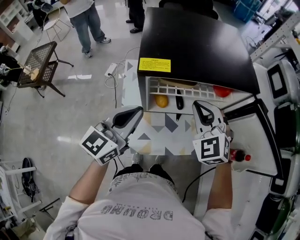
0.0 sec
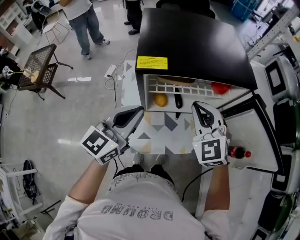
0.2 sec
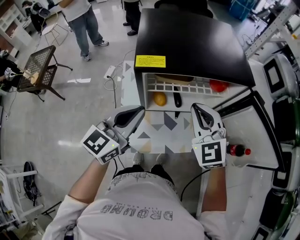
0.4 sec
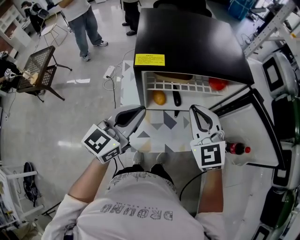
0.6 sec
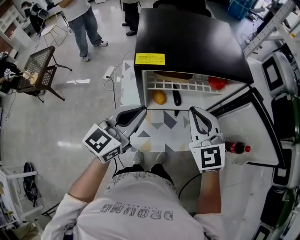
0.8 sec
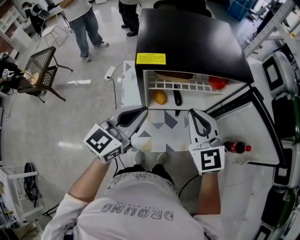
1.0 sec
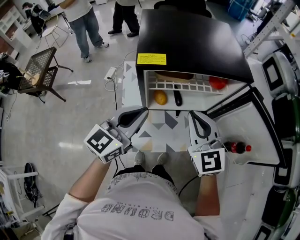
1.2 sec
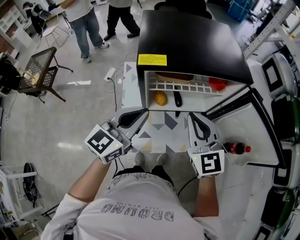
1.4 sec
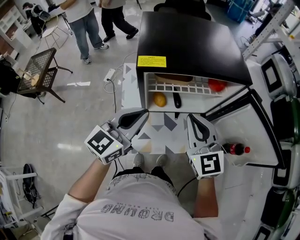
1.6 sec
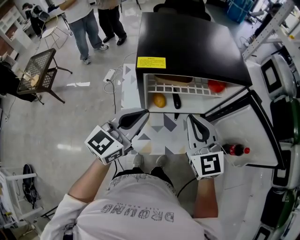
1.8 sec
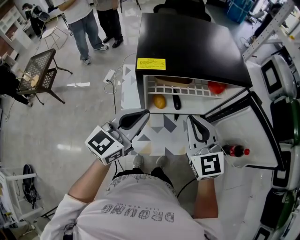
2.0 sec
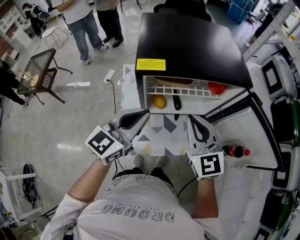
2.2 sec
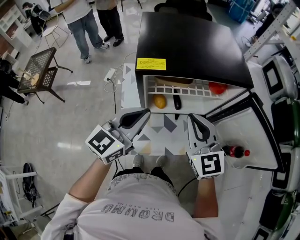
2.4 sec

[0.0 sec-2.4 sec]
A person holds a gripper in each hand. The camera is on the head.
0.0 sec to 1.2 sec: The right gripper heads backward, covering roughly 5 cm, and turns by roughly 30 degrees.
1.2 sec to 2.4 sec: The grippers stay close to where they were, moving slightly.

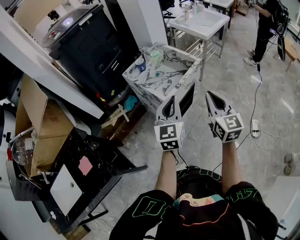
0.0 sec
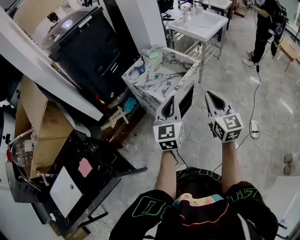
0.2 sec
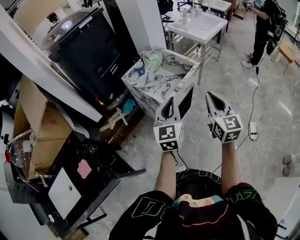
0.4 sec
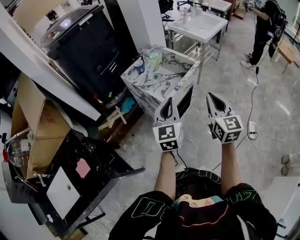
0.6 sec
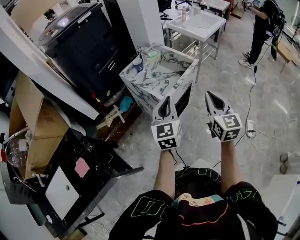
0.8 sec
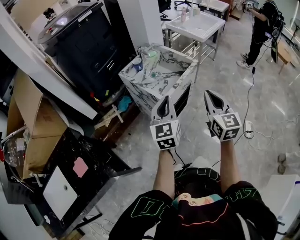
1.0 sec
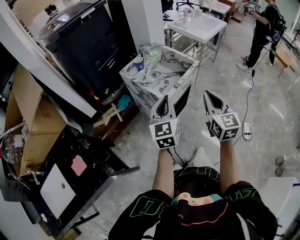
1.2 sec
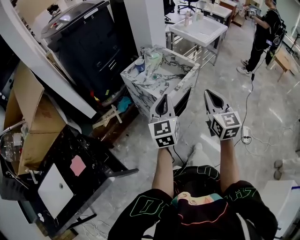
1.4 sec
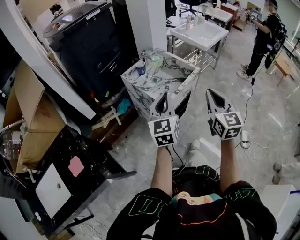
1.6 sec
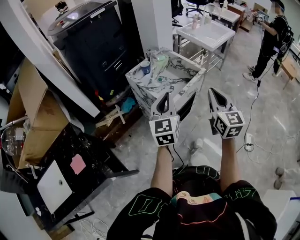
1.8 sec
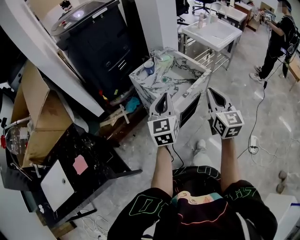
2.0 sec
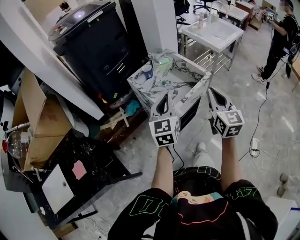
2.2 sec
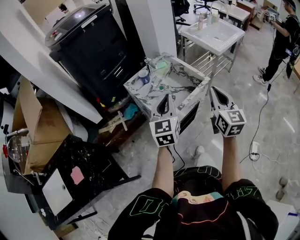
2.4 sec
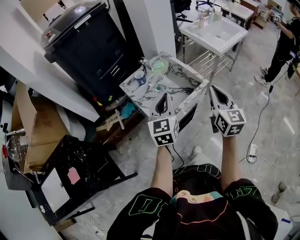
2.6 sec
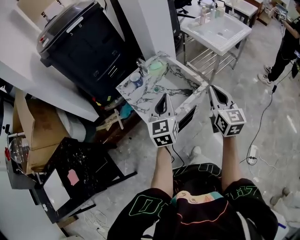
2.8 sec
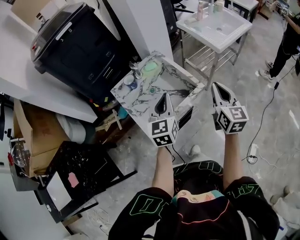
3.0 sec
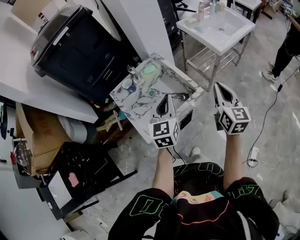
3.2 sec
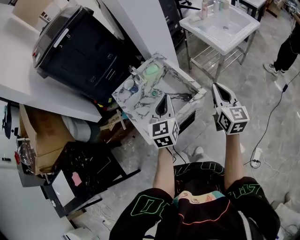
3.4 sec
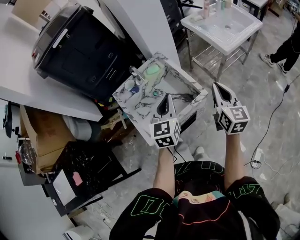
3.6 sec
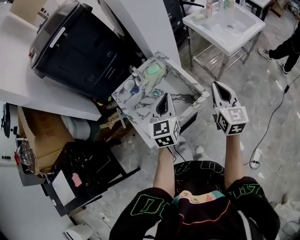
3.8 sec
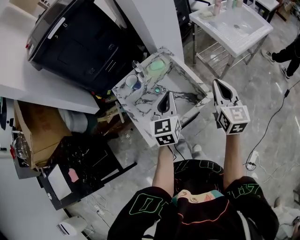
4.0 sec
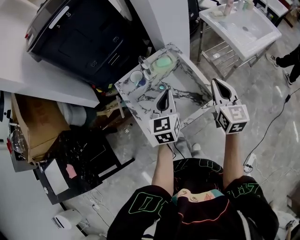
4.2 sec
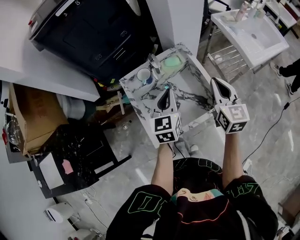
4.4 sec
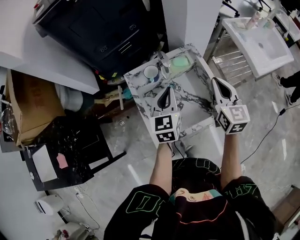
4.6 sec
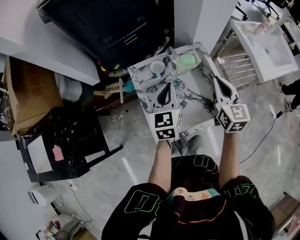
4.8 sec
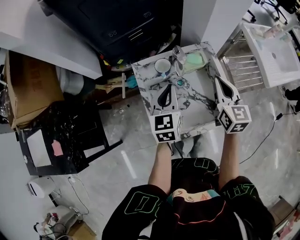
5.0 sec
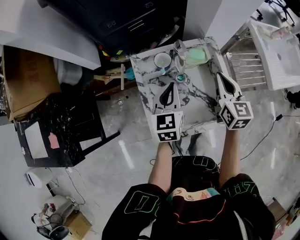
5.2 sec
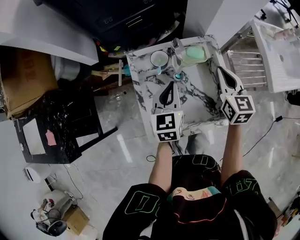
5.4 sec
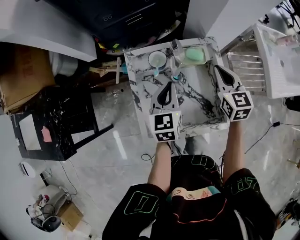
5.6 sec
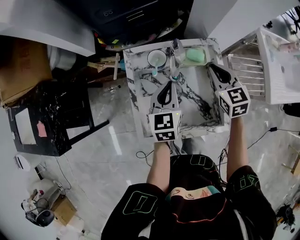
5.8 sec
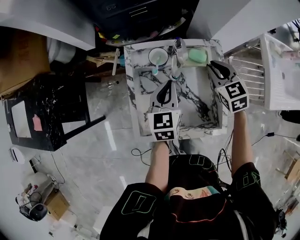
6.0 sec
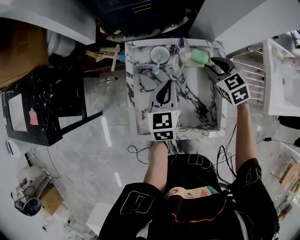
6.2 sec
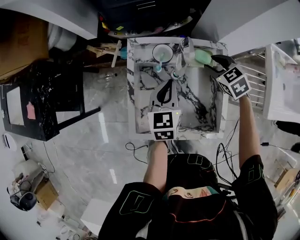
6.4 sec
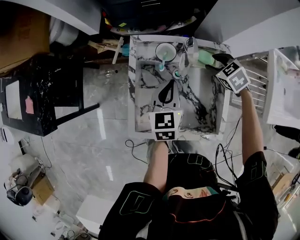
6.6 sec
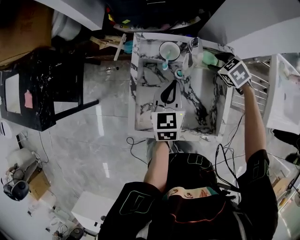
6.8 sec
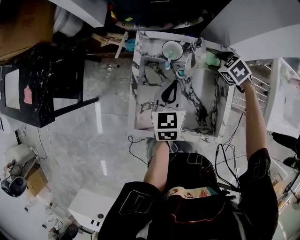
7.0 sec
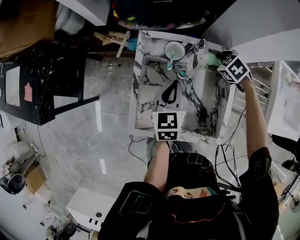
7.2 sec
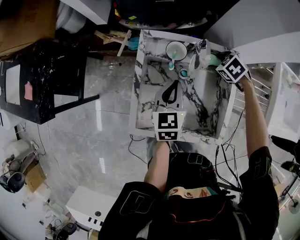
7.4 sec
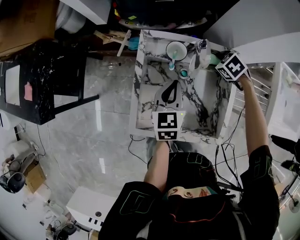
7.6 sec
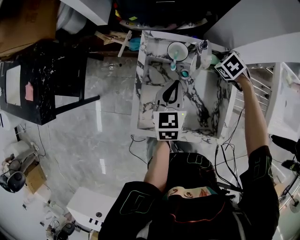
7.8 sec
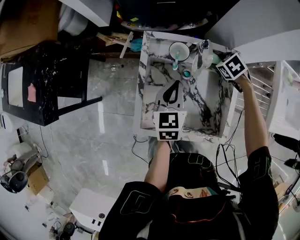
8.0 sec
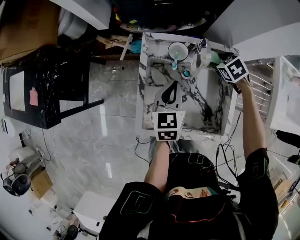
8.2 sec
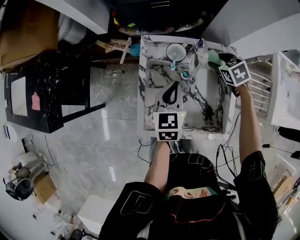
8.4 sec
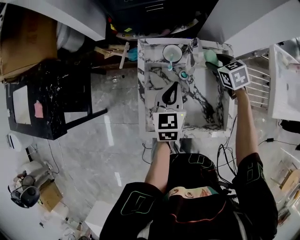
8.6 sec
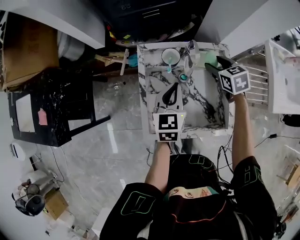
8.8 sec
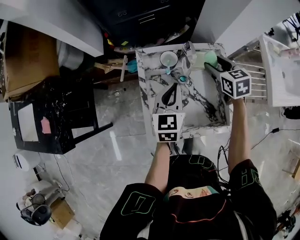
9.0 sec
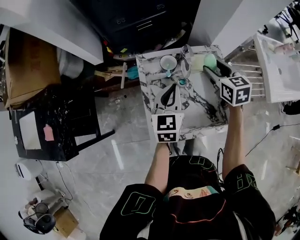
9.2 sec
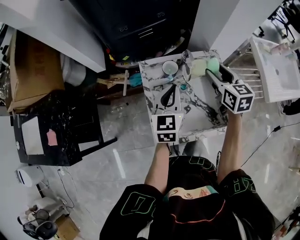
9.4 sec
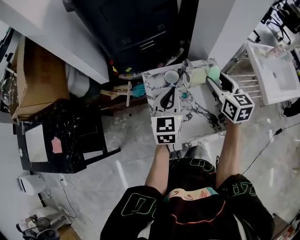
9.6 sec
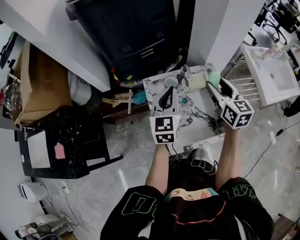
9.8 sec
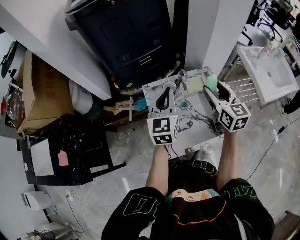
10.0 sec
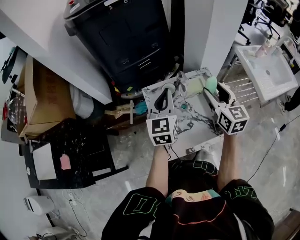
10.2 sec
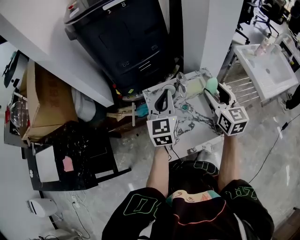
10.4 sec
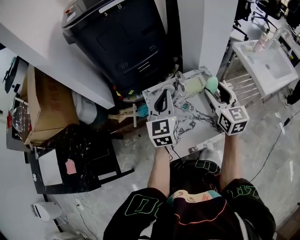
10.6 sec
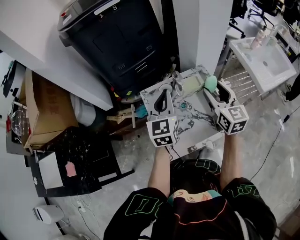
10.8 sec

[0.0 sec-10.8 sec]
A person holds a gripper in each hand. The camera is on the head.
0.0 sec to 1.6 sec: The left gripper heads to the left, covering roughly 5 cm.
1.6 sec to 3.0 sec: The two grippers go about 30 cm forward and to the right.
3.0 sec to 4.6 sec: The right gripper is displaced forward and to the left by about 25 cm, and swivels some 20 degrees. Meanwhile the left gripper travels forward, to the left and downward by approximately 20 cm.
4.6 sec to 6.2 sec: The right gripper moves some 25 cm, points its fingers approximately 30 degrees further downward, and opens up, while the left gripper goes some 10 cm downward, and turns by approximately 20 degrees.
6.2 sec to 7.8 sec: The right gripper shifts about 10 cm downward, tips its fingers downward by about 30 degrees, and opens its fingers.
7.8 sec to 9.2 sec: The left gripper heads upward, covering some 10 cm. The right gripper heads upward, covering approximately 20 cm, and tips its fingers upward by approximately 40 degrees.
9.2 sec to 10.8 sec: The right gripper is displaced upward and backward by some 15 cm, and rotates about 30 degrees; the left gripper moves upward, approximately 10 cm.

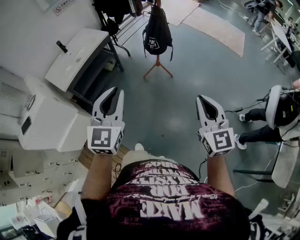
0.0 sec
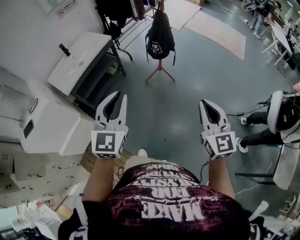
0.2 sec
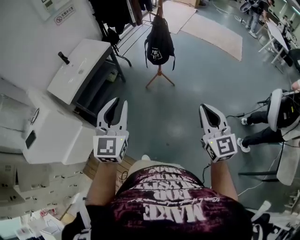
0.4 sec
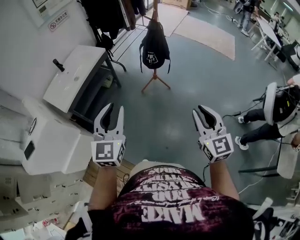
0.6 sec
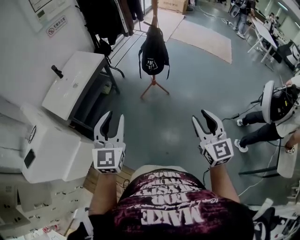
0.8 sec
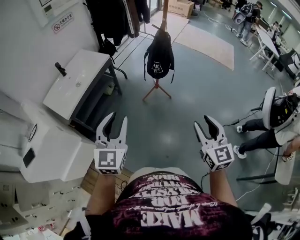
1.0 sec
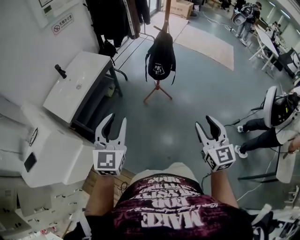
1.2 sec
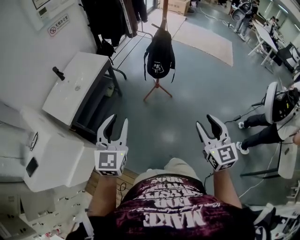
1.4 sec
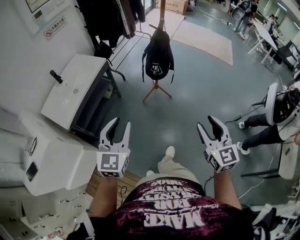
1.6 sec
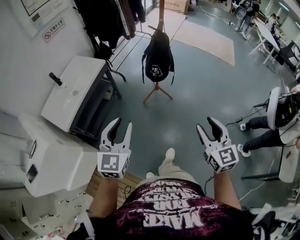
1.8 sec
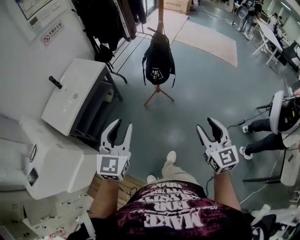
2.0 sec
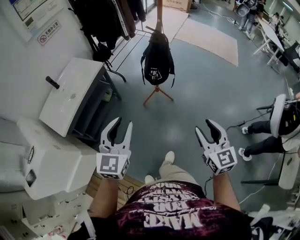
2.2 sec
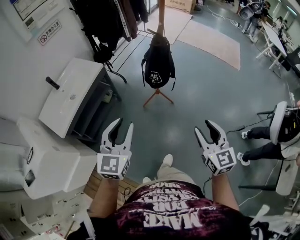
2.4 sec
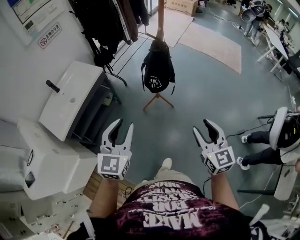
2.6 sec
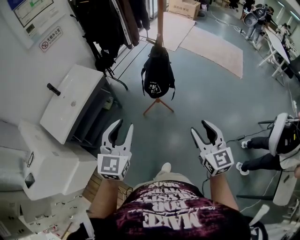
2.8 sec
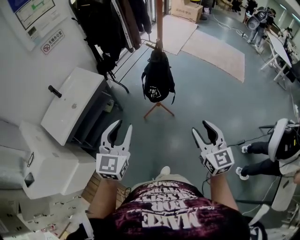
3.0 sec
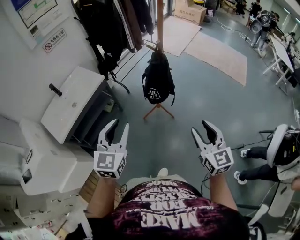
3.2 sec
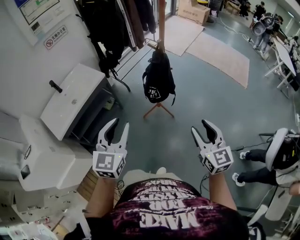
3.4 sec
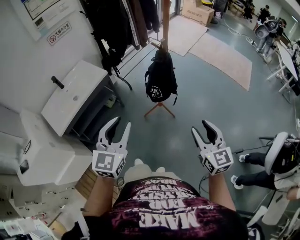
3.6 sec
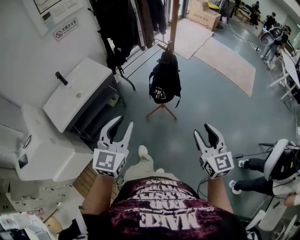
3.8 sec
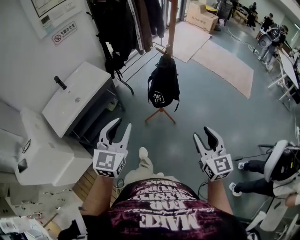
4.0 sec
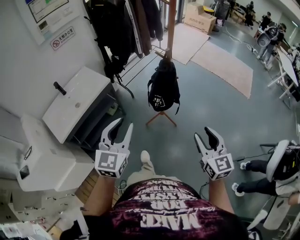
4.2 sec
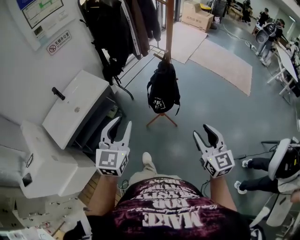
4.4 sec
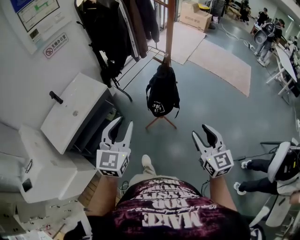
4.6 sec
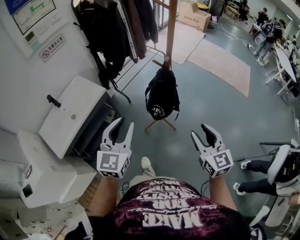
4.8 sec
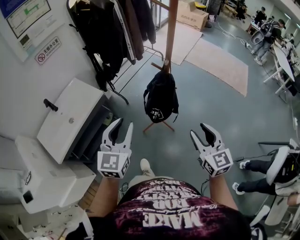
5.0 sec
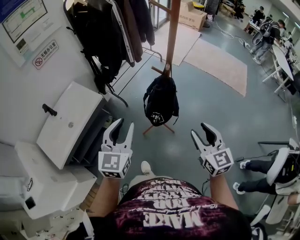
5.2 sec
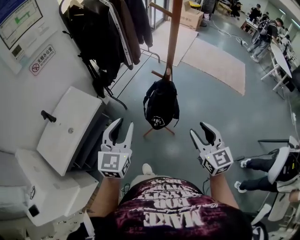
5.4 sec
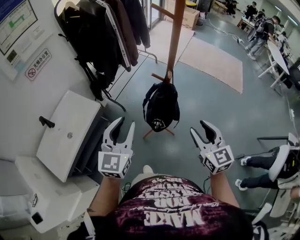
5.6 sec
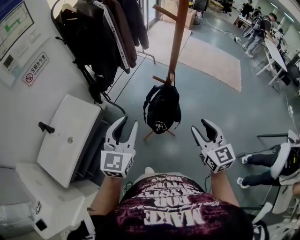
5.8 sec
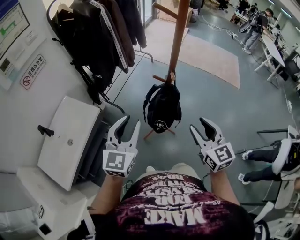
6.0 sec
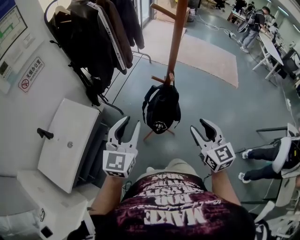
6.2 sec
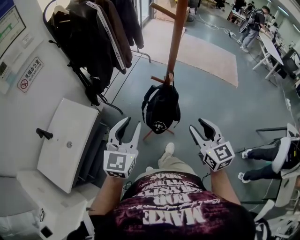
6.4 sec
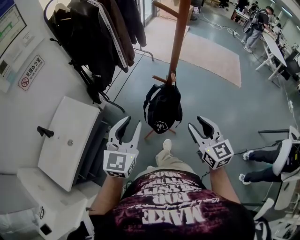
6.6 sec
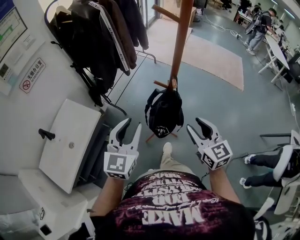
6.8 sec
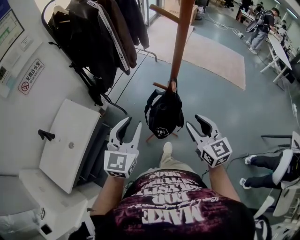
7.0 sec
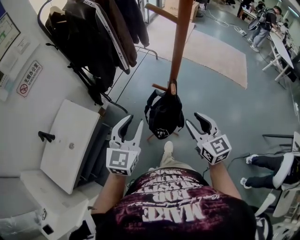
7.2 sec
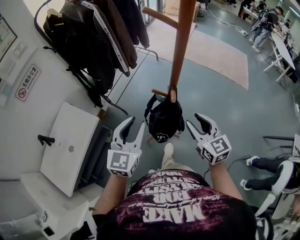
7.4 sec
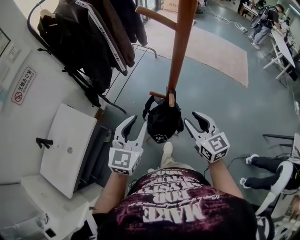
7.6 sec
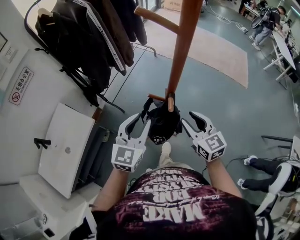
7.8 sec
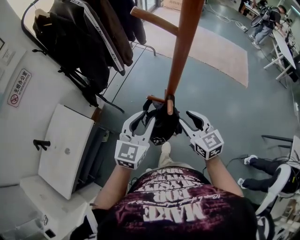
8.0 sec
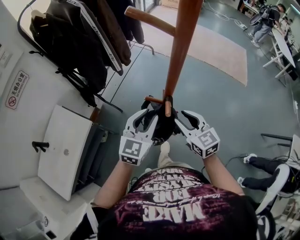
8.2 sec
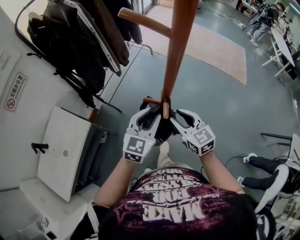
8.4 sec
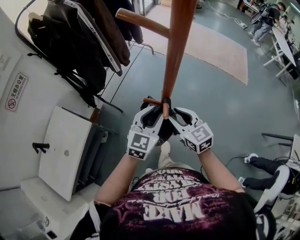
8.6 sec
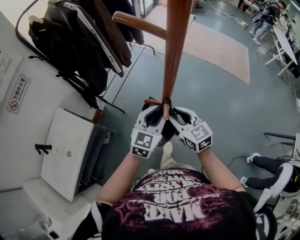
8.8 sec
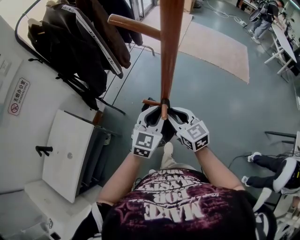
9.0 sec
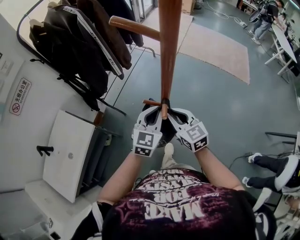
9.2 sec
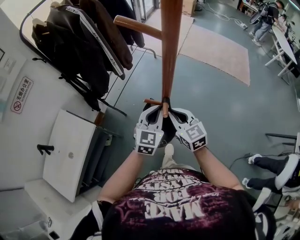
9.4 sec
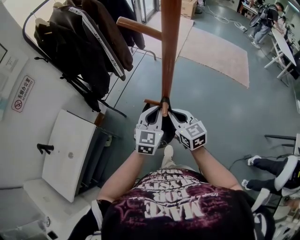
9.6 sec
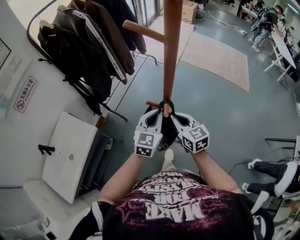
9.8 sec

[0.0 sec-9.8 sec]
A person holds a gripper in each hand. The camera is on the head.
0.0 sec to 1.4 sec: The grippers both shift to the left and forward by roughly 15 cm. The right gripper opens its fingers.
1.4 sec to 2.8 sec: The grippers both shift forward and to the right by roughly 20 cm.
2.8 sec to 4.2 sec: Both grippers move forward, approximately 5 cm.
4.2 sec to 5.6 sec: The two grippers go approximately 20 cm forward.
5.6 sec to 7.0 sec: The grippers both shift forward by approximately 10 cm.
7.0 sec to 8.4 sec: The left gripper goes approximately 20 cm forward, to the right and downward, while the right gripper heads forward and downward, covering roughly 15 cm.
8.4 sec to 9.8 sec: The left gripper closes its fingers. Meanwhile the right gripper closes up.
